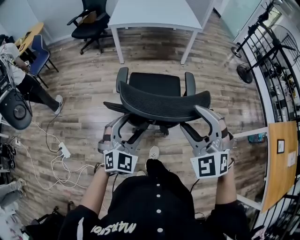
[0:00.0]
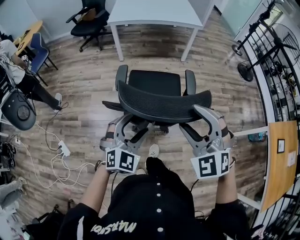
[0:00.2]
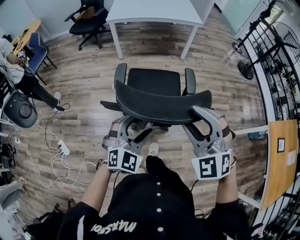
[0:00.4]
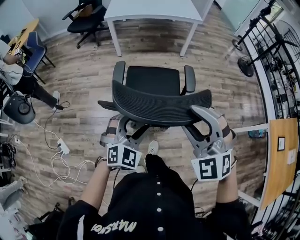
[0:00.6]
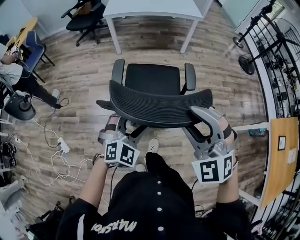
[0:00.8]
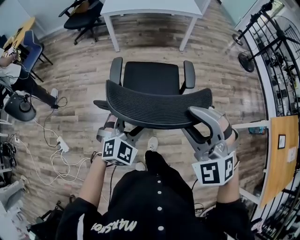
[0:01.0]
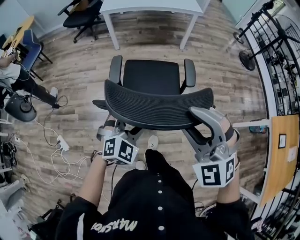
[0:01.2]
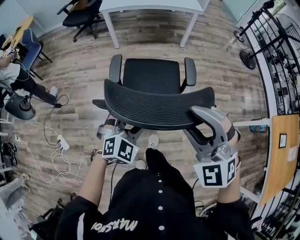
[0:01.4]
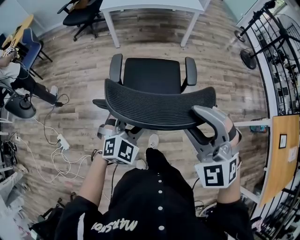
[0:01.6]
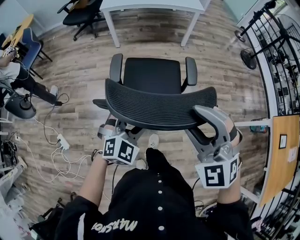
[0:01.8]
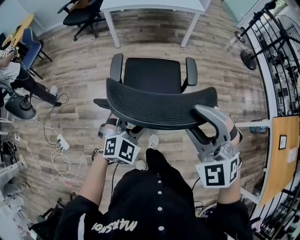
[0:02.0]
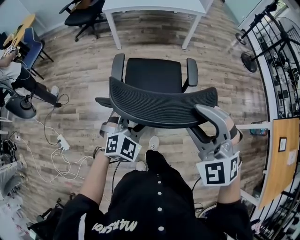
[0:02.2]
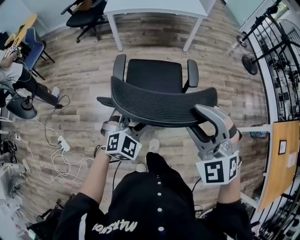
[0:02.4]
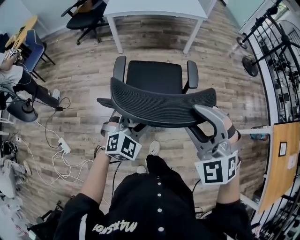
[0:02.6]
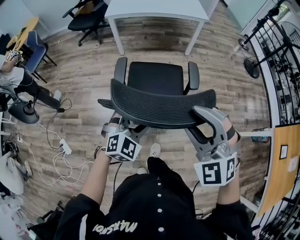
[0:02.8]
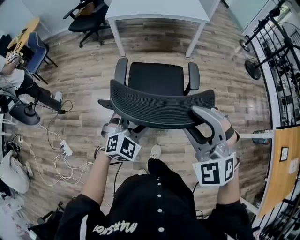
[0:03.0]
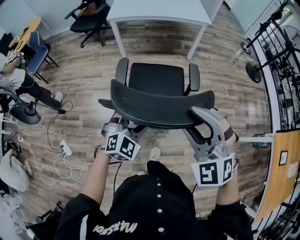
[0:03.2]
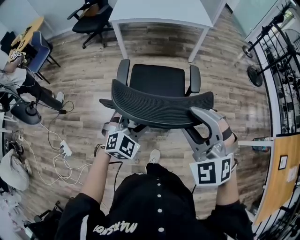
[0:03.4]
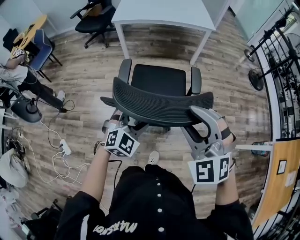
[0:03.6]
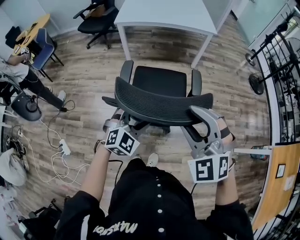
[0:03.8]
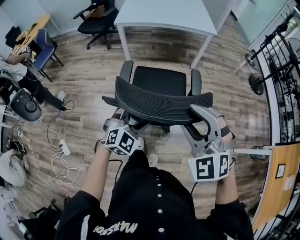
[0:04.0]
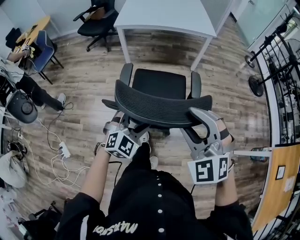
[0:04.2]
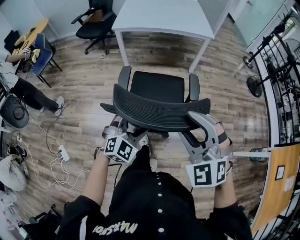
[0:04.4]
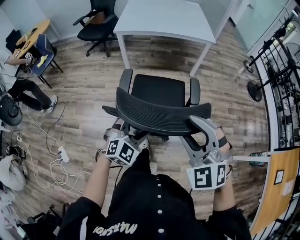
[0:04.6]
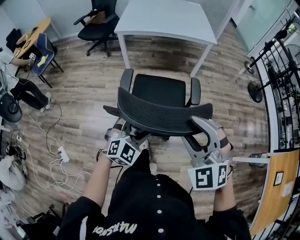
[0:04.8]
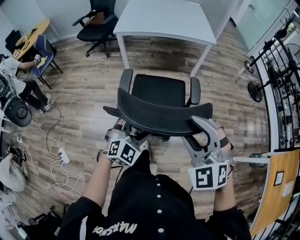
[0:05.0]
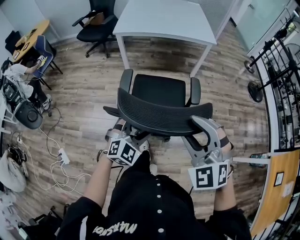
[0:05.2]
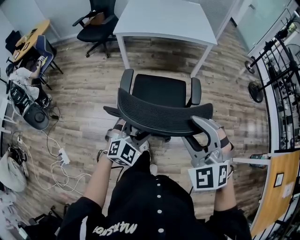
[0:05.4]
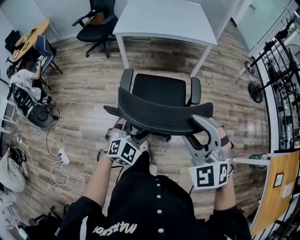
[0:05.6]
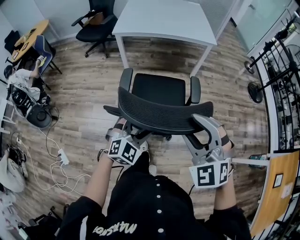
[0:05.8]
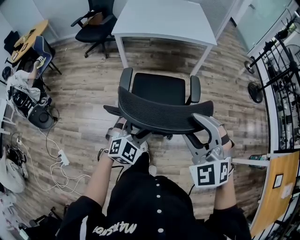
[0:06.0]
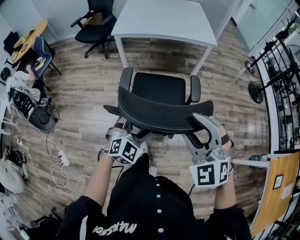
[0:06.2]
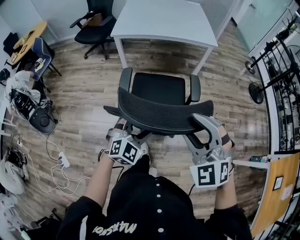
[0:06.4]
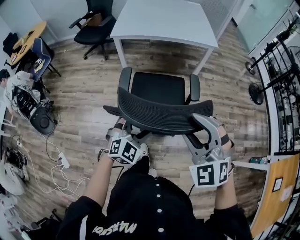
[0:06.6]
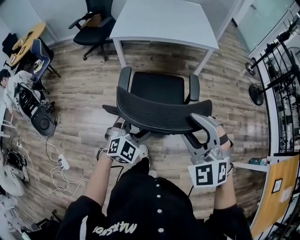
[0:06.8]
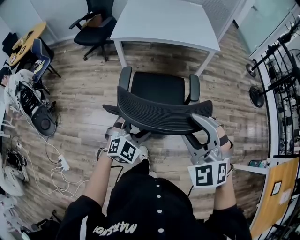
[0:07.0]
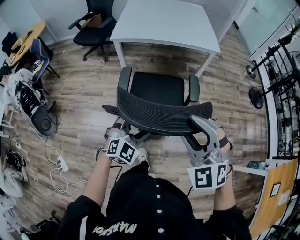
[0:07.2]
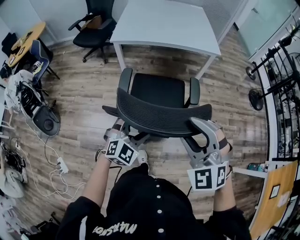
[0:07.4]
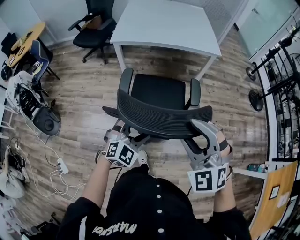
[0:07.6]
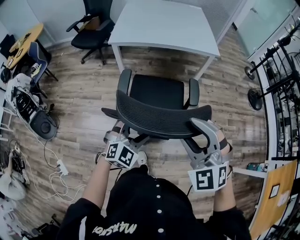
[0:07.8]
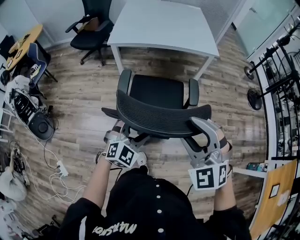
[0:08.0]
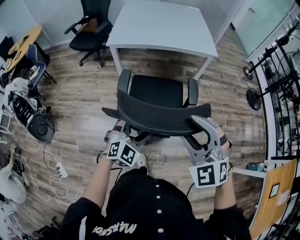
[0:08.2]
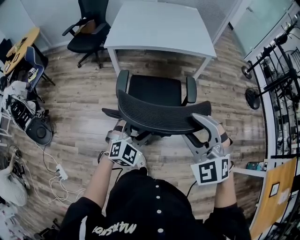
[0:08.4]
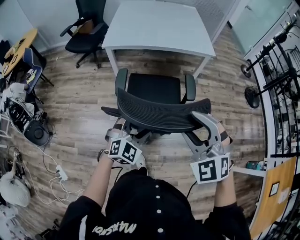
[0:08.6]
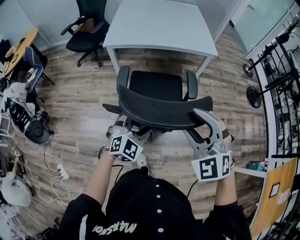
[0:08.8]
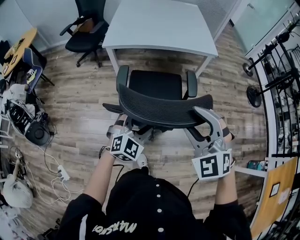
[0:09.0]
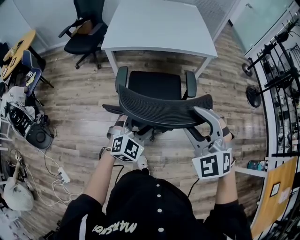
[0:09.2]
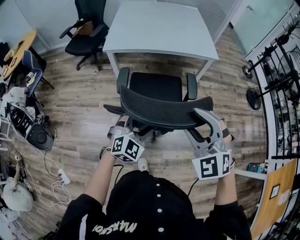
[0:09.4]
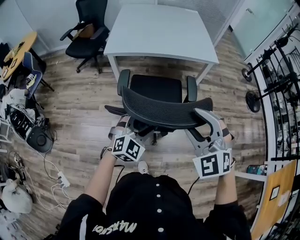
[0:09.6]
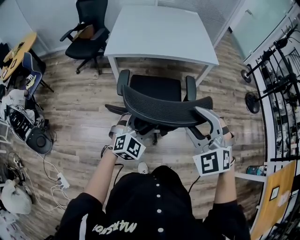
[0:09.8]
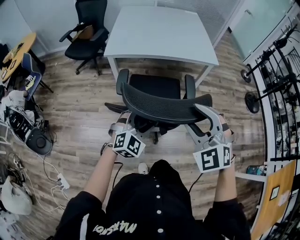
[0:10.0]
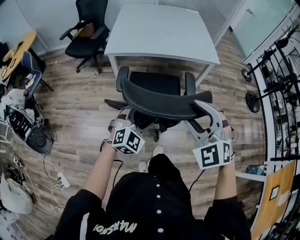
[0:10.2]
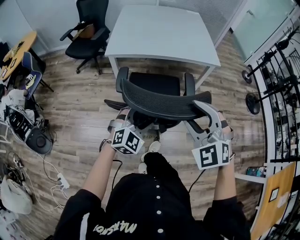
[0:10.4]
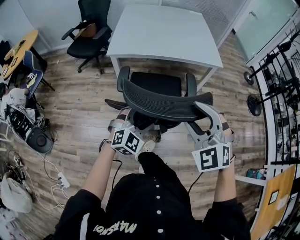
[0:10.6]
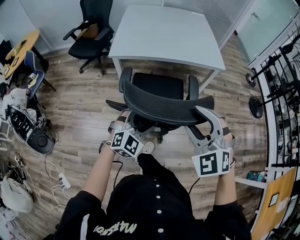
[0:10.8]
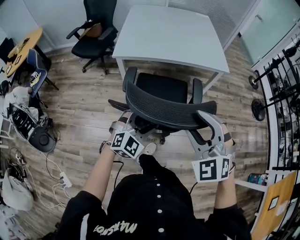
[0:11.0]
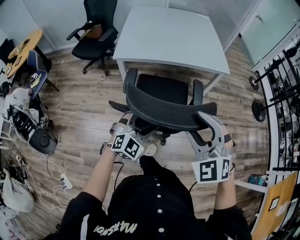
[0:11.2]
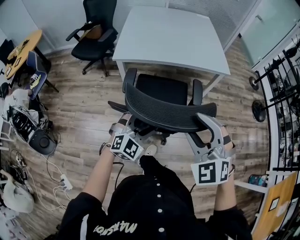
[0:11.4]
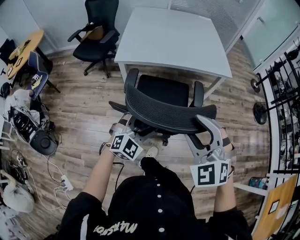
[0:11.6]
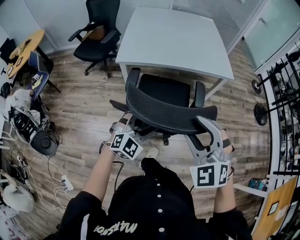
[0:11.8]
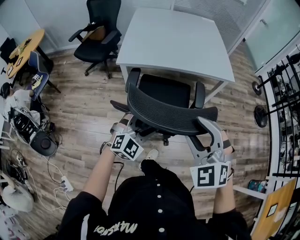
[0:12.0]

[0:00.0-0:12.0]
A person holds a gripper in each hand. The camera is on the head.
0:00.0 to 0:01.6: The left gripper changes place by some 5 cm.
0:01.6 to 0:03.0: The two grippers go about 5 cm forward.
0:03.0 to 0:04.4: Both grippers move forward, about 5 cm.
0:04.4 to 0:06.0: Both grippers travel together forward, about 5 cm.
0:06.0 to 0:07.6: Both grippers move forward, some 10 cm.
0:07.6 to 0:09.0: Both grippers move forward, approximately 10 cm.
0:09.0 to 0:10.4: Both grippers move forward, roughly 5 cm.
0:10.4 to 0:12.0: The right gripper moves to the left, some 5 cm. Meanwhile the left gripper shifts some 10 cm forward and to the left.

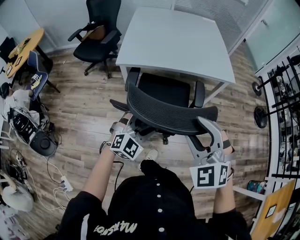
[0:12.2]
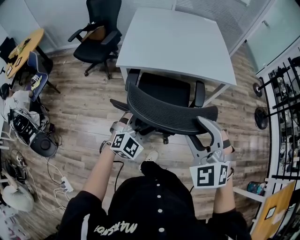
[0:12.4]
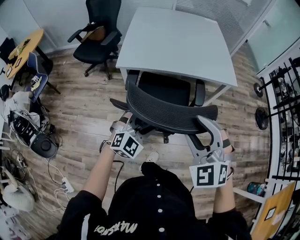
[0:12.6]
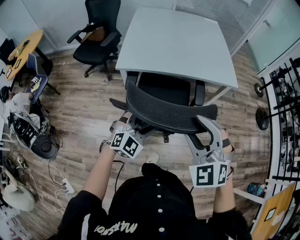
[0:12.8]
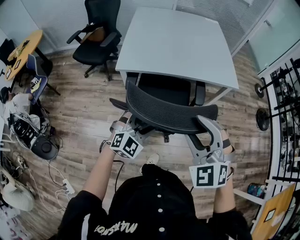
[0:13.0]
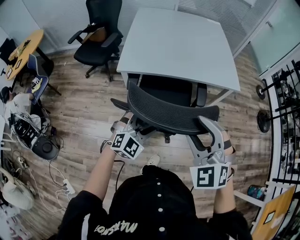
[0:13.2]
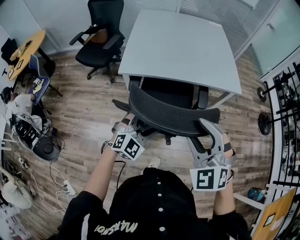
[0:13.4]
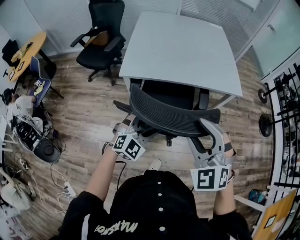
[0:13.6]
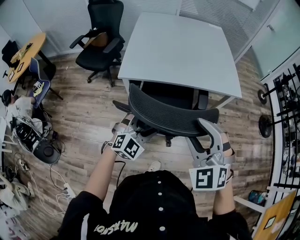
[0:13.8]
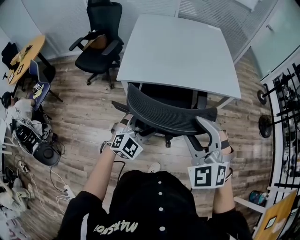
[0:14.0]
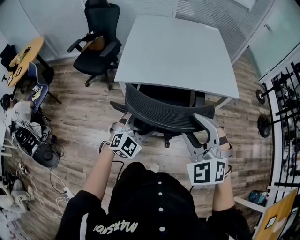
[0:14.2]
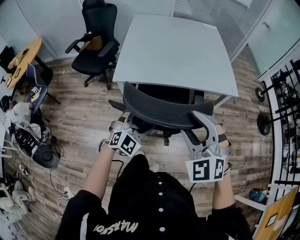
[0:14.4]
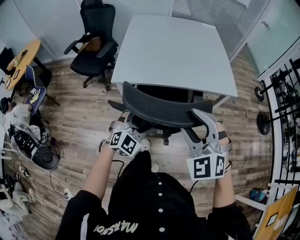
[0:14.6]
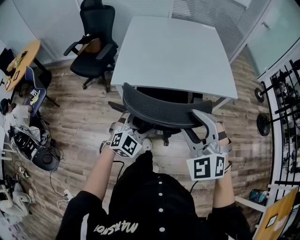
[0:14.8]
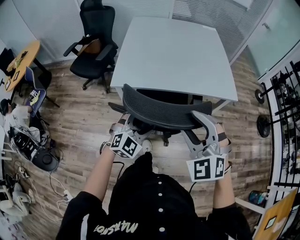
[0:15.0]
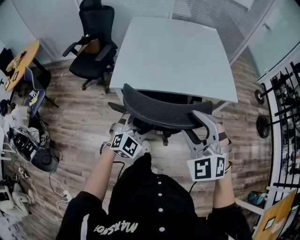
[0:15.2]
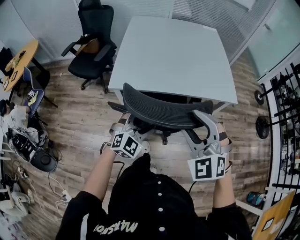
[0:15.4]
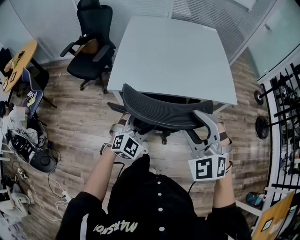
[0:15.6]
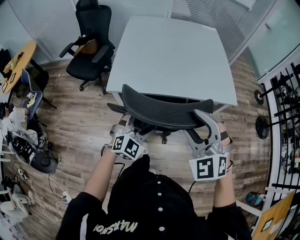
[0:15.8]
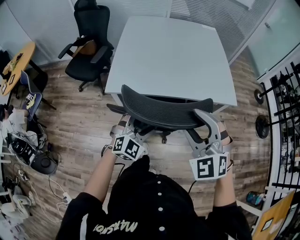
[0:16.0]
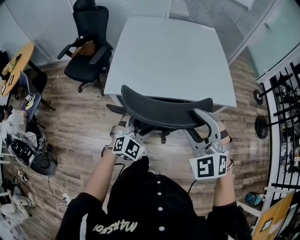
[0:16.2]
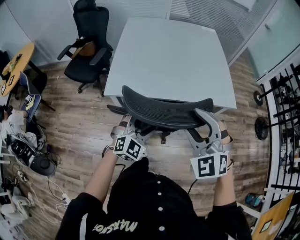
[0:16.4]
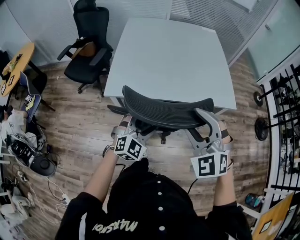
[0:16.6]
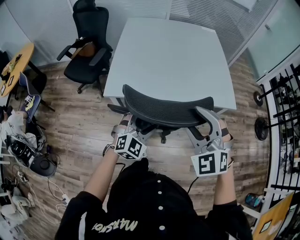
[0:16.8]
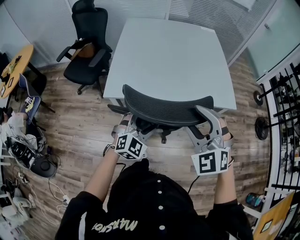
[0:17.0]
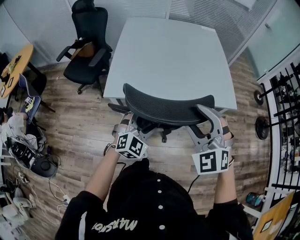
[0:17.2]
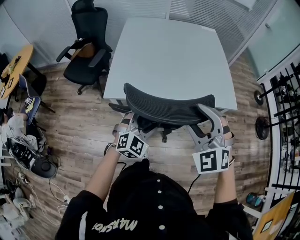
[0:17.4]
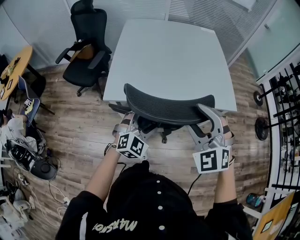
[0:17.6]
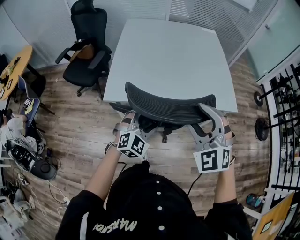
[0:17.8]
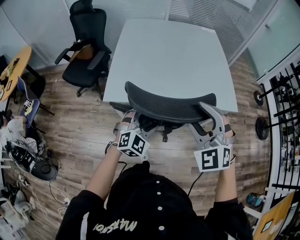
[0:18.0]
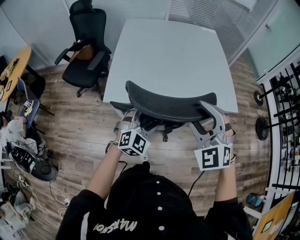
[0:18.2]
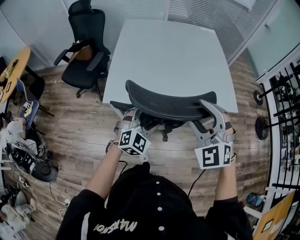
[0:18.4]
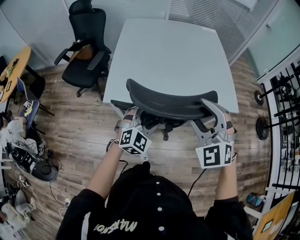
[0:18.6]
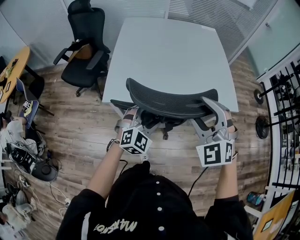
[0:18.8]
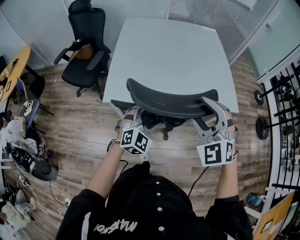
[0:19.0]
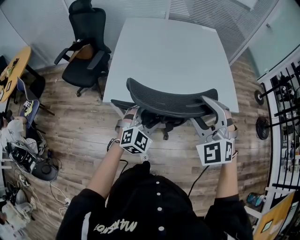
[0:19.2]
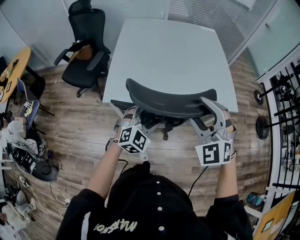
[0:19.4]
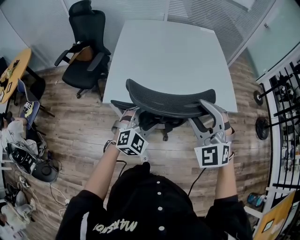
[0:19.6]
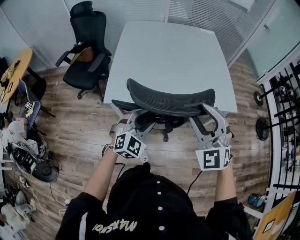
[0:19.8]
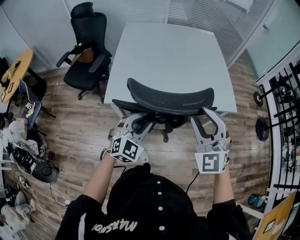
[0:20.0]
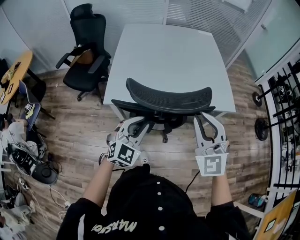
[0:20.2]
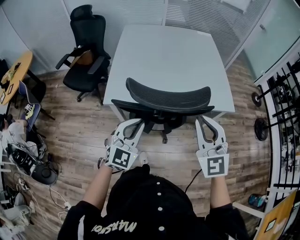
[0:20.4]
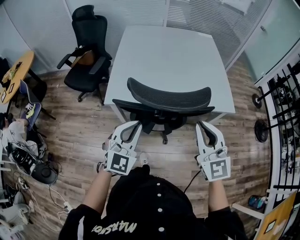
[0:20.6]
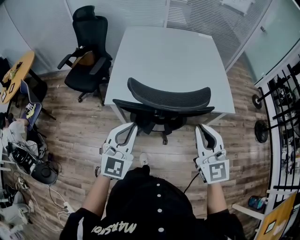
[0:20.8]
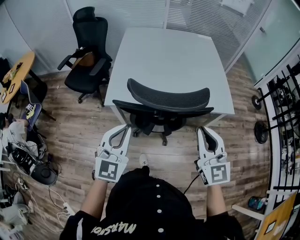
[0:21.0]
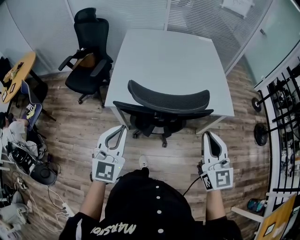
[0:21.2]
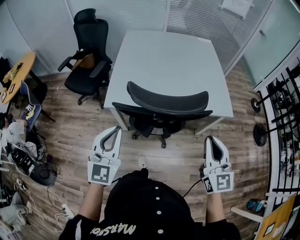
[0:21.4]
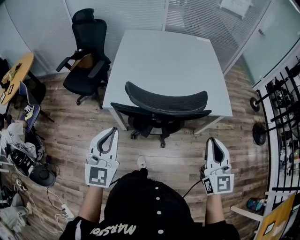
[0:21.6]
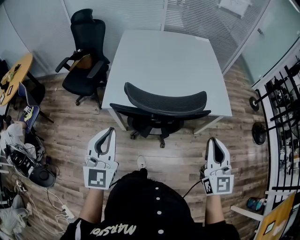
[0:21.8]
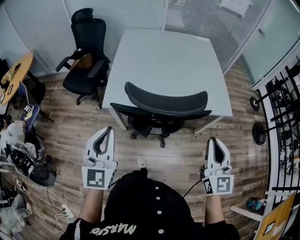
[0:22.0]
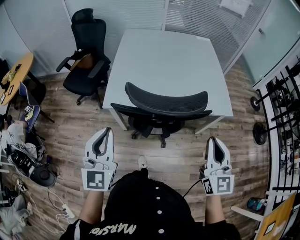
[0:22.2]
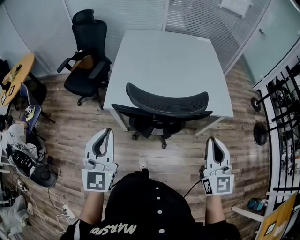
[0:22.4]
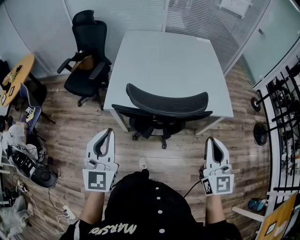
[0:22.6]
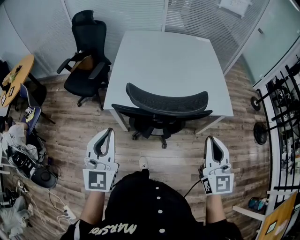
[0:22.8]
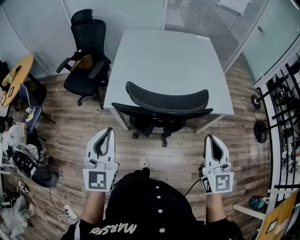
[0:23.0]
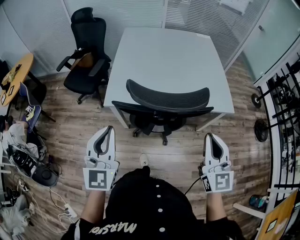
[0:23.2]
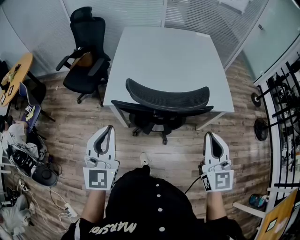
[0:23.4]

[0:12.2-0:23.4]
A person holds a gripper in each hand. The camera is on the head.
0:12.2 to 0:13.8: The two grippers go roughly 10 cm forward.
0:13.8 to 0:15.4: The two grippers go about 10 cm forward.
0:15.4 to 0:17.0: The grippers both shift forward by about 5 cm.
0:17.0 to 0:18.6: The two grippers go about 5 cm forward.
0:18.6 to 0:20.2: The right gripper changes place by approximately 5 cm, swivels roughly 20 degrees, and closes its fingers, while the left gripper is displaced backward by roughly 5 cm, and closes up.
0:20.2 to 0:21.8: The left gripper travels upward, to the left and backward by approximately 15 cm, and turns by some 30 degrees; the right gripper shifts some 10 cm to the right and backward, and turns by roughly 30 degrees.
0:21.8 to 0:23.4: The grippers move only a little.

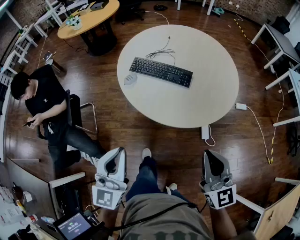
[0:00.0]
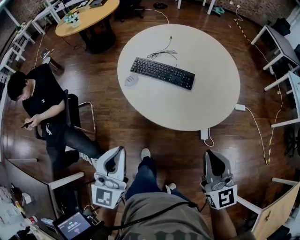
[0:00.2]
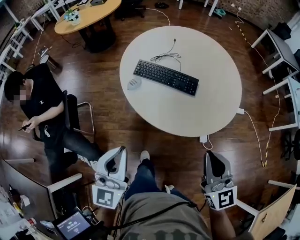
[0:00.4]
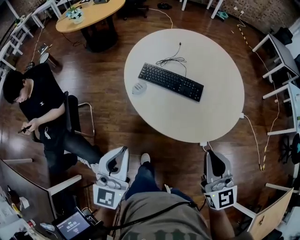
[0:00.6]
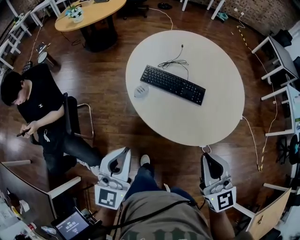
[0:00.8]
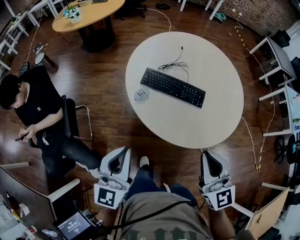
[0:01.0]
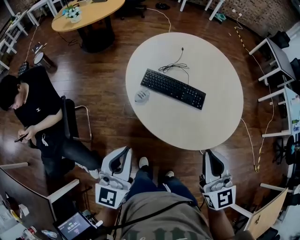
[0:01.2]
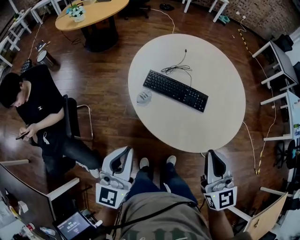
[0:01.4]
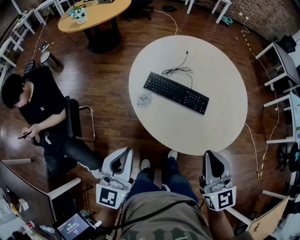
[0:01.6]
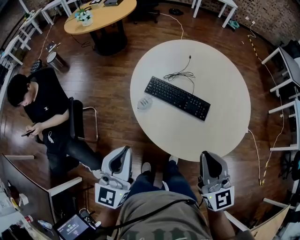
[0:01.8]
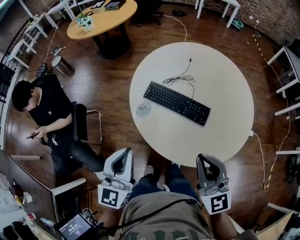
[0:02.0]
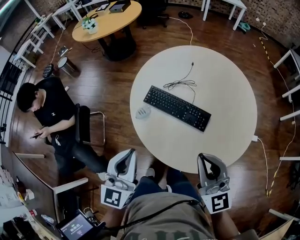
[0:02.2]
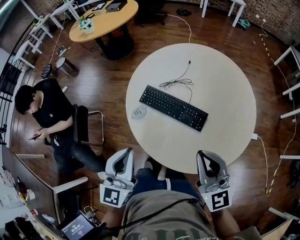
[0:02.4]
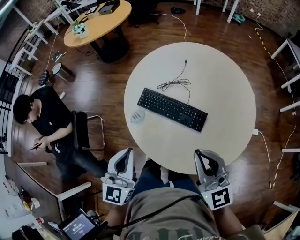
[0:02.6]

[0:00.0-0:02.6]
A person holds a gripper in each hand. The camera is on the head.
0:00.0 to 0:01.2: Both grippers move forward and to the left, roughly 20 cm.
0:01.2 to 0:02.6: The left gripper heads to the right and forward, covering roughly 15 cm, while the right gripper shifts roughly 15 cm forward and to the right.
